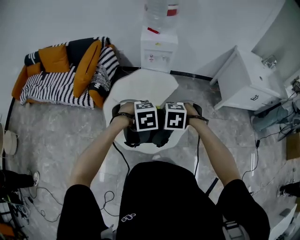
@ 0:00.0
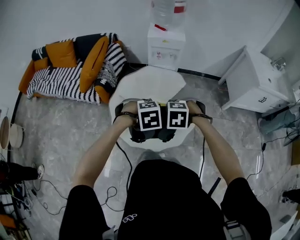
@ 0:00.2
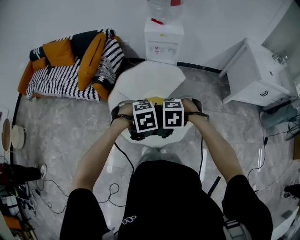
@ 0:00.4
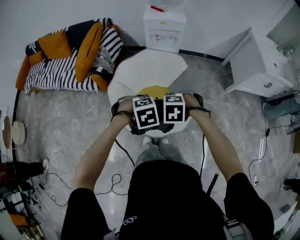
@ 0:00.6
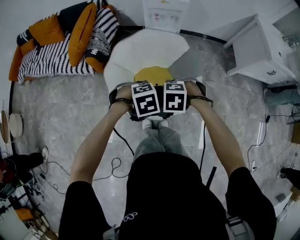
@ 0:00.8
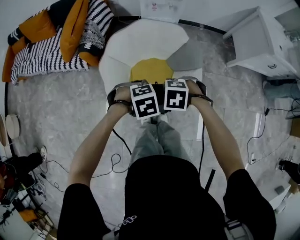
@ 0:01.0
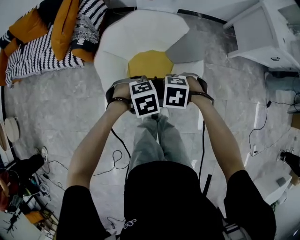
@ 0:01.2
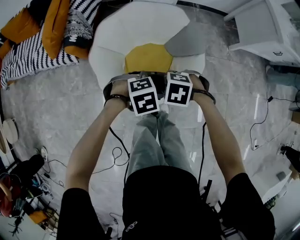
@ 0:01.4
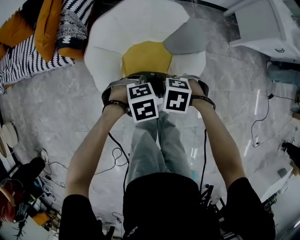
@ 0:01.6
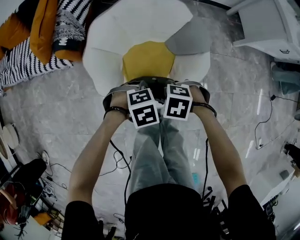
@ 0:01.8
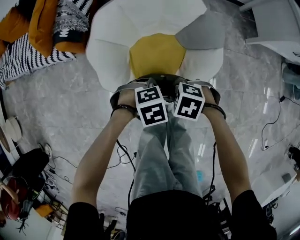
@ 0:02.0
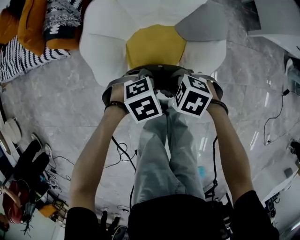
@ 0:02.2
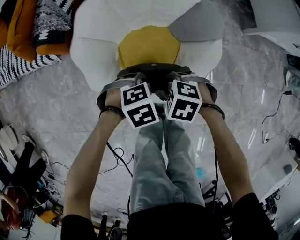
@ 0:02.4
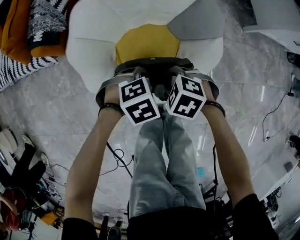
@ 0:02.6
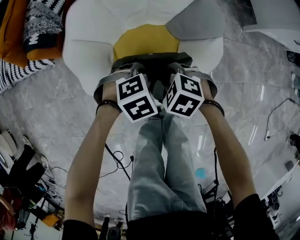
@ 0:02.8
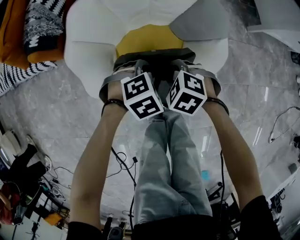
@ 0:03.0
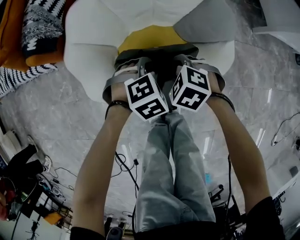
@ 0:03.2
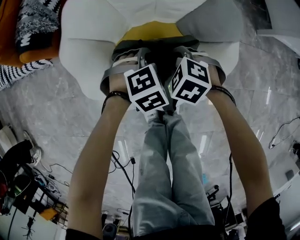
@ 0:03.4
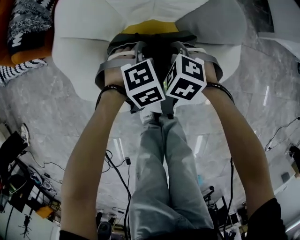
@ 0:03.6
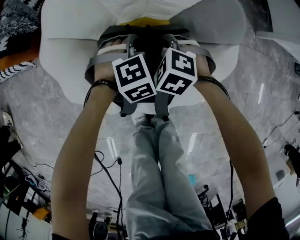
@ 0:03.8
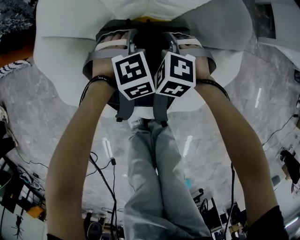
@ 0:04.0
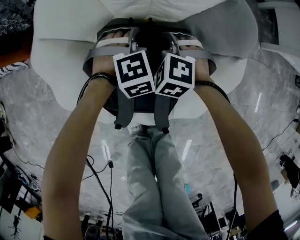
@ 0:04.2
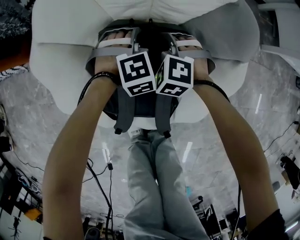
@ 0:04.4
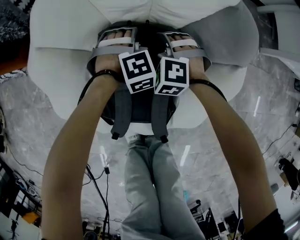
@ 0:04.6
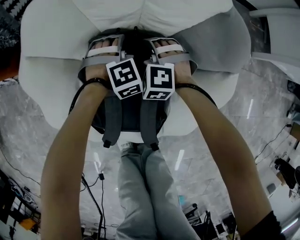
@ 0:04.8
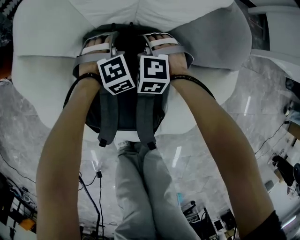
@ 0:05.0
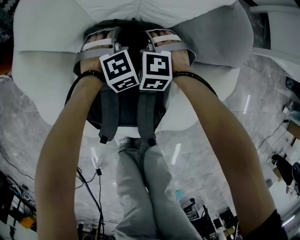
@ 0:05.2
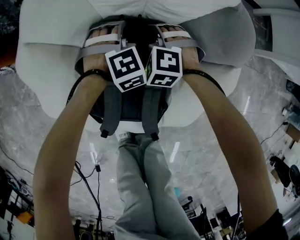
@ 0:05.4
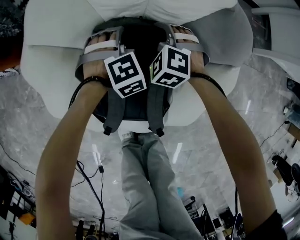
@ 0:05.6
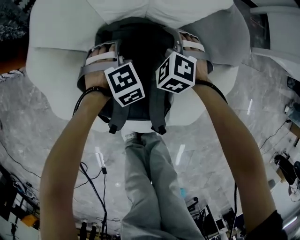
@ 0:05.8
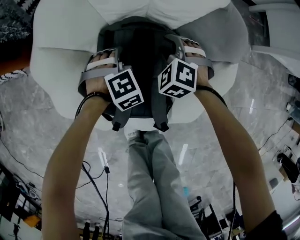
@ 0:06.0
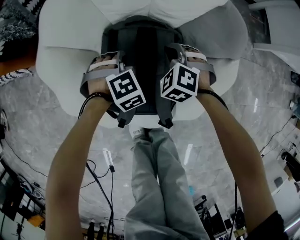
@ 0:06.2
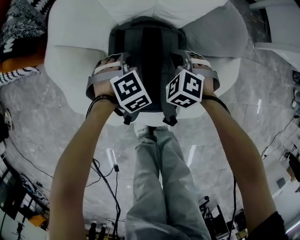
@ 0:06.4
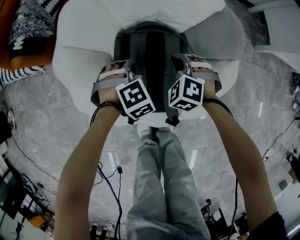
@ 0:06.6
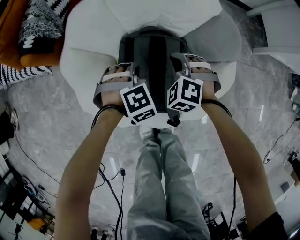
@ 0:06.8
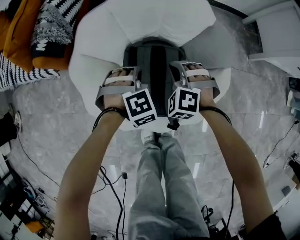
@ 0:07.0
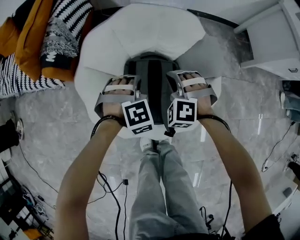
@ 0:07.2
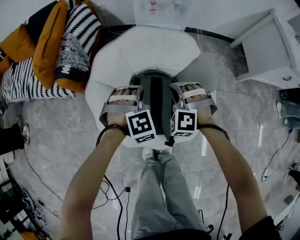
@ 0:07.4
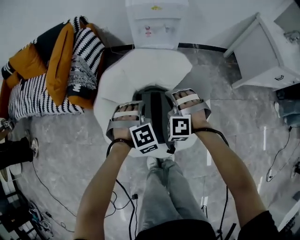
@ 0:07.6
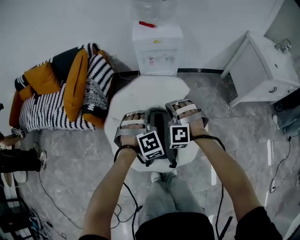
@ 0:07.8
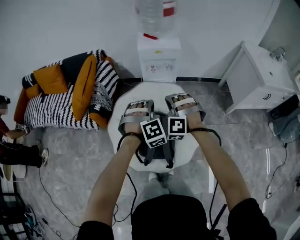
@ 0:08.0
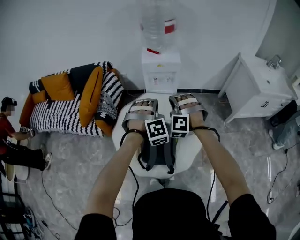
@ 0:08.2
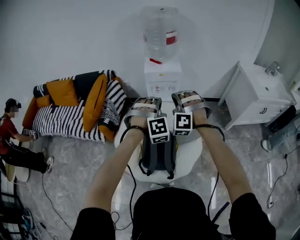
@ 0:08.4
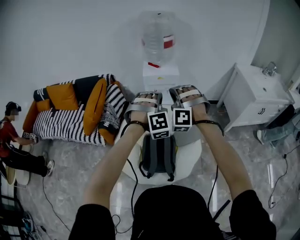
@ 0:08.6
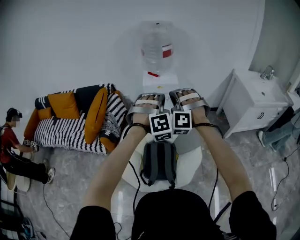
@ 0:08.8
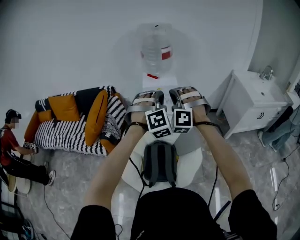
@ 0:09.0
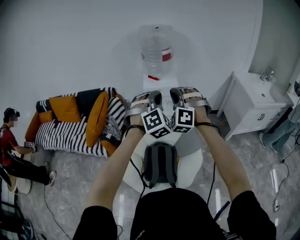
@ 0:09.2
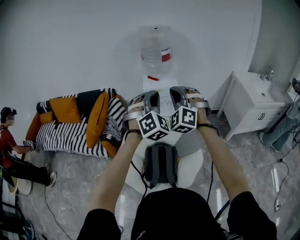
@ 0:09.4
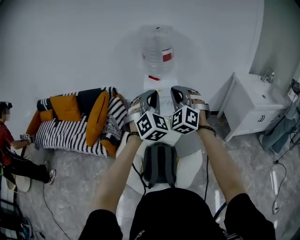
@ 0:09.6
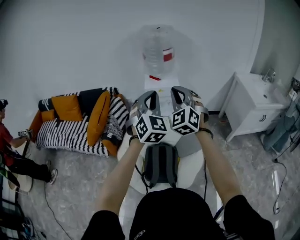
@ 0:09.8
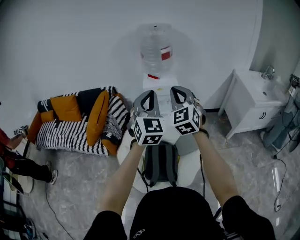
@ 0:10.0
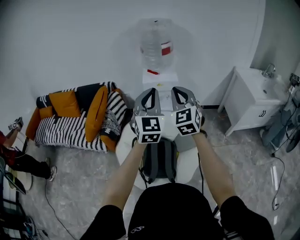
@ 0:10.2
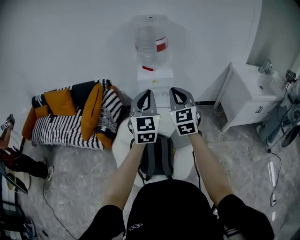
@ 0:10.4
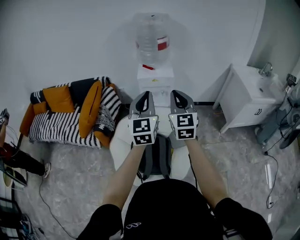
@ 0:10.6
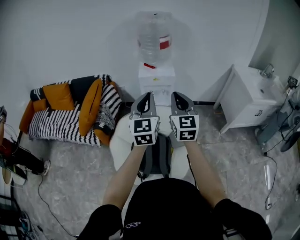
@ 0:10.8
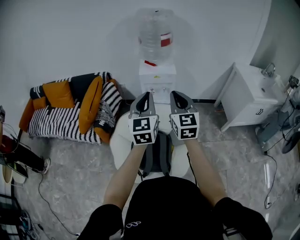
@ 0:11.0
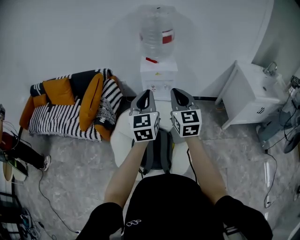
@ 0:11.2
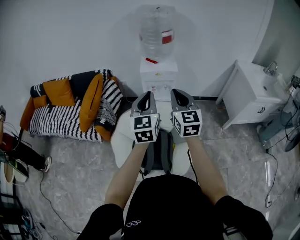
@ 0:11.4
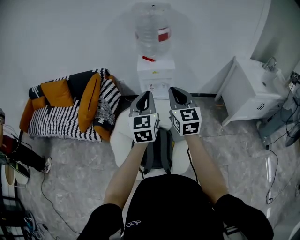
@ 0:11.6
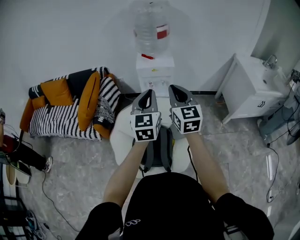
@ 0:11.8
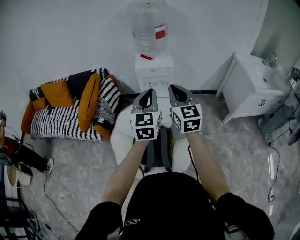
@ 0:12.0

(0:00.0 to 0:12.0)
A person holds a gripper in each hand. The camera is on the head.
0:00.0 - 0:01.6: The two grippers go approximately 25 cm downward. The right gripper swivels about 20 degrees.
0:01.6 - 0:03.0: The grippers both shift downward by some 20 cm.
0:03.0 - 0:04.4: Both grippers move downward, roughly 20 cm. The right gripper swivels some 30 degrees. Meanwhile the left gripper changes its angle by about 30 degrees.
0:04.4 - 0:06.0: The right gripper reaches some 5 cm downward, then returns, and opens. Meanwhile the left gripper travels to the left by approximately 5 cm, and opens, then closes again.
0:06.0 - 0:07.6: Both grippers travel together upward, some 35 cm. The left gripper closes. The right gripper turns by about 30 degrees, and closes.
0:07.6 - 0:09.0: The two grippers go roughly 40 cm upward. The left gripper tilts its fingers some 30 degrees upward. The right gripper swivels roughly 30 degrees.
0:09.0 - 0:10.4: The left gripper twists about 70 degrees counterclockwise, seen from behind. The right gripper twists about 70 degrees clockwise, seen from behind.
0:10.4 - 0:12.0: The left gripper goes about 5 cm downward.

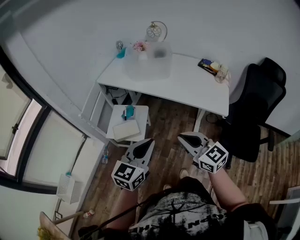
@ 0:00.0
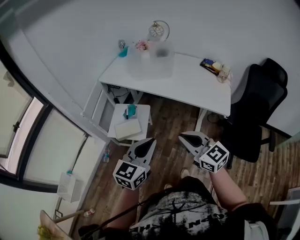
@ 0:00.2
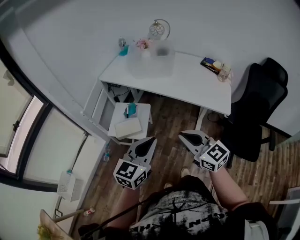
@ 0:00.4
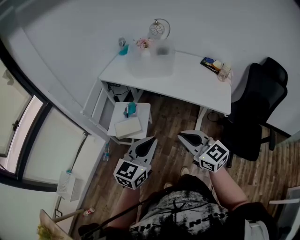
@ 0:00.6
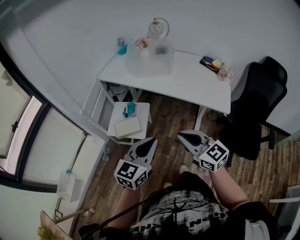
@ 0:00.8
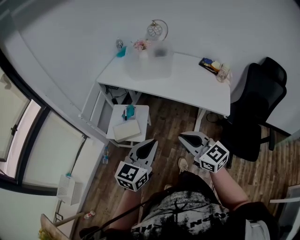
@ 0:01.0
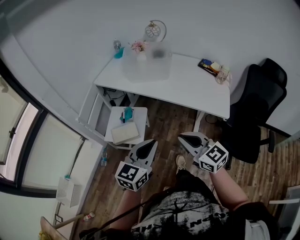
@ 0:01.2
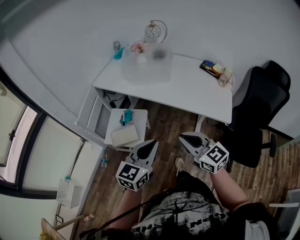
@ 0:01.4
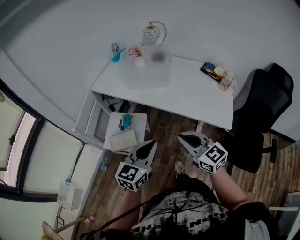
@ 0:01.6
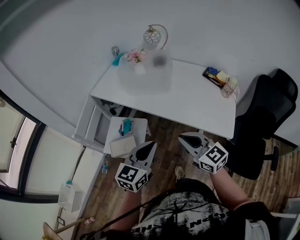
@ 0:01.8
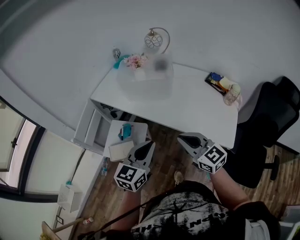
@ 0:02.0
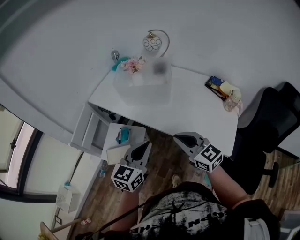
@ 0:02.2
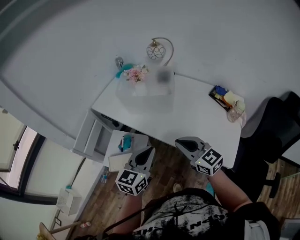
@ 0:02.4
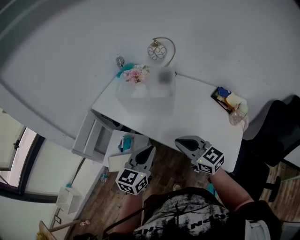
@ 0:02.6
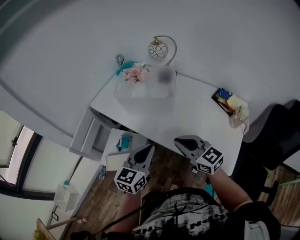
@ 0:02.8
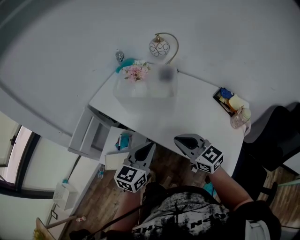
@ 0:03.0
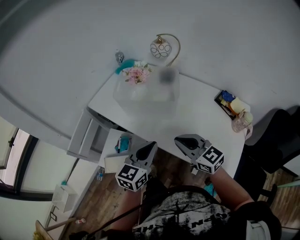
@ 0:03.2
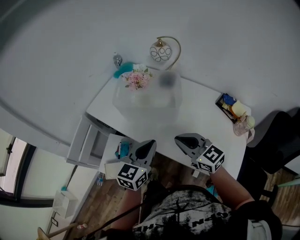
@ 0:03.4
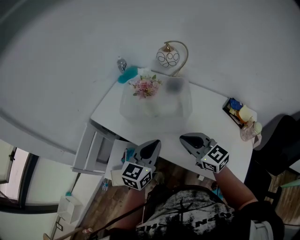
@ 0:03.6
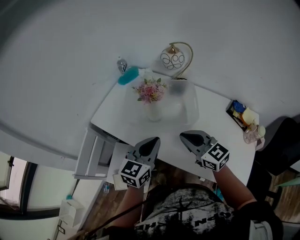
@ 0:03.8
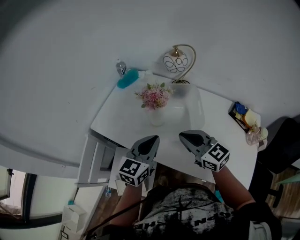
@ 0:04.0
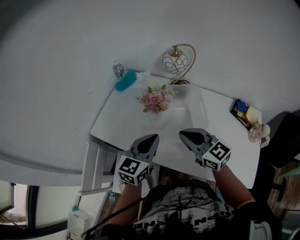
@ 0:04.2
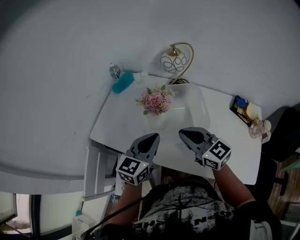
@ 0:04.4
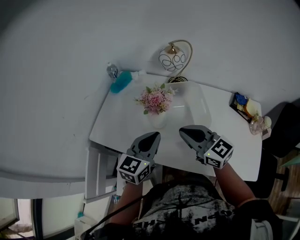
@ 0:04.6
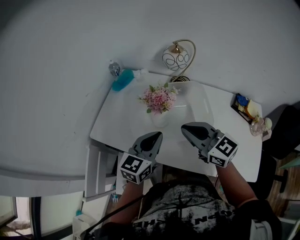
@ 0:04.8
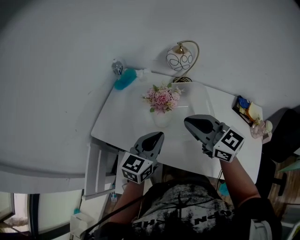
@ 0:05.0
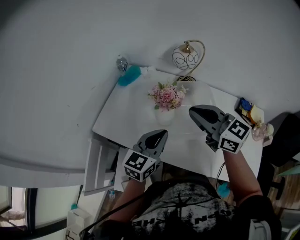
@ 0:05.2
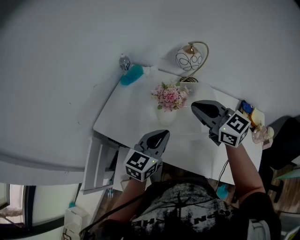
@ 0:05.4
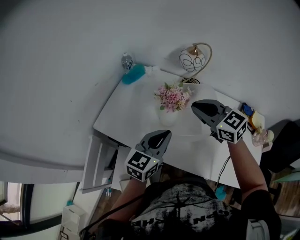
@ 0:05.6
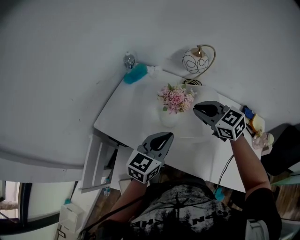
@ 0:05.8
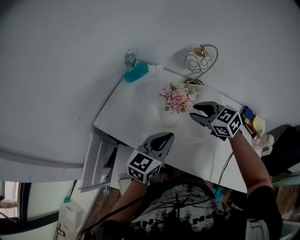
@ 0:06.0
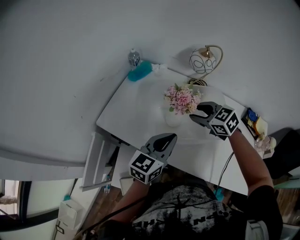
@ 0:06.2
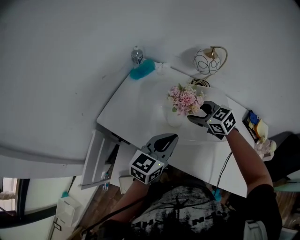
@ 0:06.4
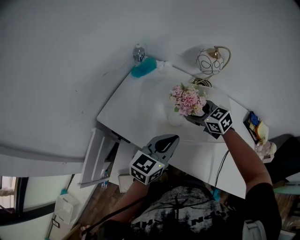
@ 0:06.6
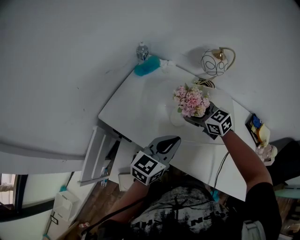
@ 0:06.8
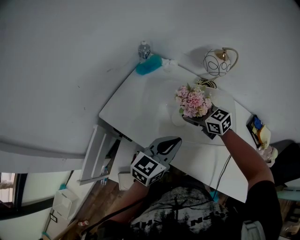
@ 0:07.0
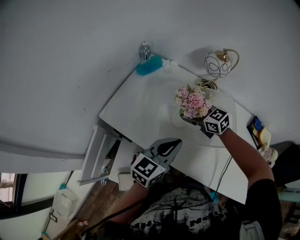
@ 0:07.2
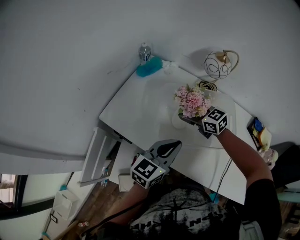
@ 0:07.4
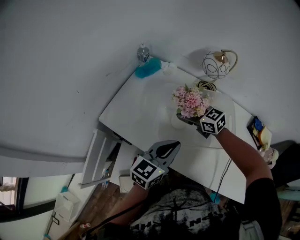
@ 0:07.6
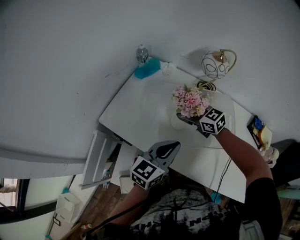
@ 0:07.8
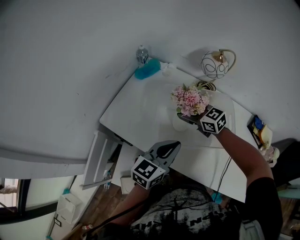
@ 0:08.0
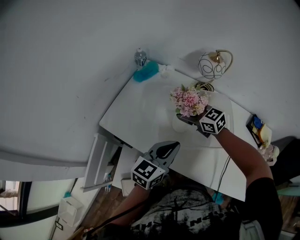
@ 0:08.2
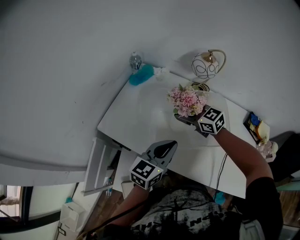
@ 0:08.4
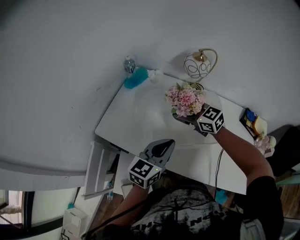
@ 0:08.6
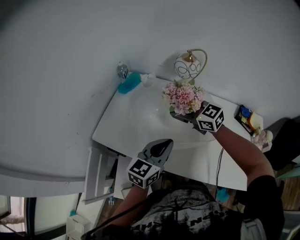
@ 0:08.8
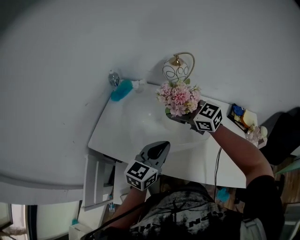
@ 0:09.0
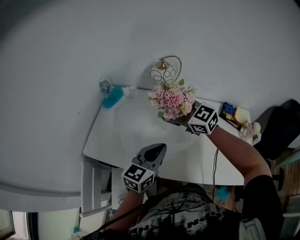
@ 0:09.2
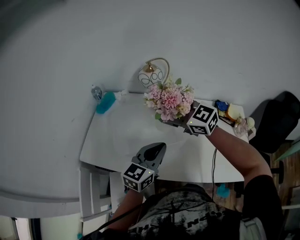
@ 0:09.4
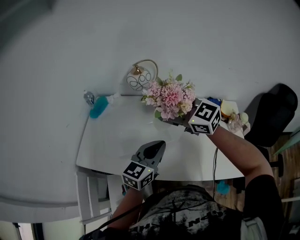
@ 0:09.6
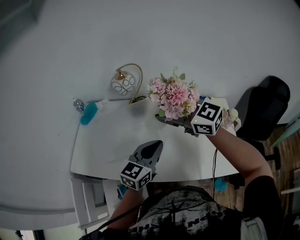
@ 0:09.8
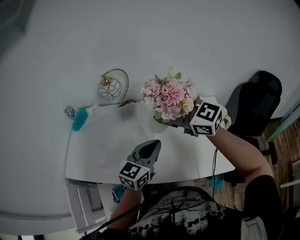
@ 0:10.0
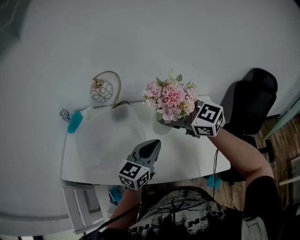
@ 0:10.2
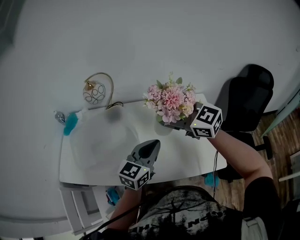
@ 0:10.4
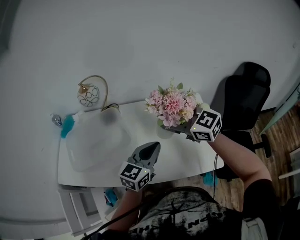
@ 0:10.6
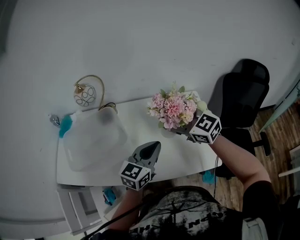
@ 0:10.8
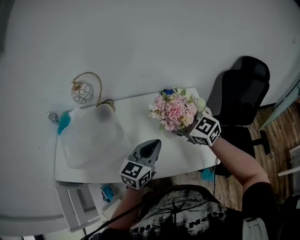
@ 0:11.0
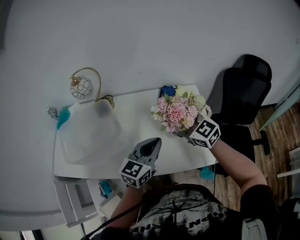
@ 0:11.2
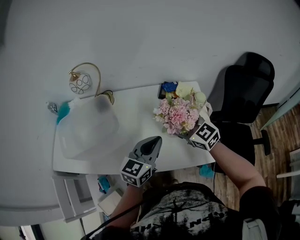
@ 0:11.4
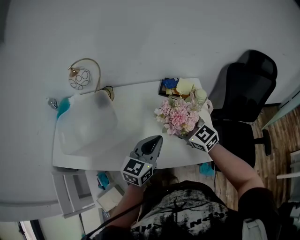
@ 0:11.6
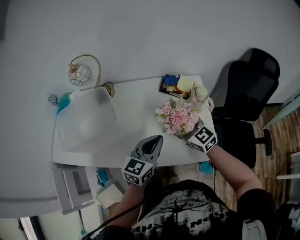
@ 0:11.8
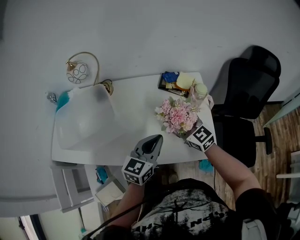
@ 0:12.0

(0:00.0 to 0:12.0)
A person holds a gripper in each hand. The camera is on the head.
0:00.0 - 0:01.6: Both grippers travel together forward, approximately 10 cm.
0:01.6 - 0:03.0: The right gripper shifts about 25 cm forward; the left gripper travels forward and to the right by some 25 cm.
0:03.0 - 0:04.4: The grippers both shift forward by some 25 cm.
0:04.4 - 0:06.0: The right gripper travels forward by some 10 cm, reaches approximately 10 cm upward, then returns, and turns by roughly 30 degrees.
0:06.0 - 0:07.6: The right gripper travels forward, to the left and downward by some 15 cm, and opens.
0:07.6 - 0:09.0: The right gripper moves upward and to the right, roughly 15 cm. The left gripper shifts by some 5 cm.
0:09.0 - 0:10.4: The grippers both shift to the right by approximately 30 cm.
0:10.4 - 0:12.0: The left gripper is displaced to the right and downward by about 10 cm; the right gripper goes about 25 cm downward and to the right.
